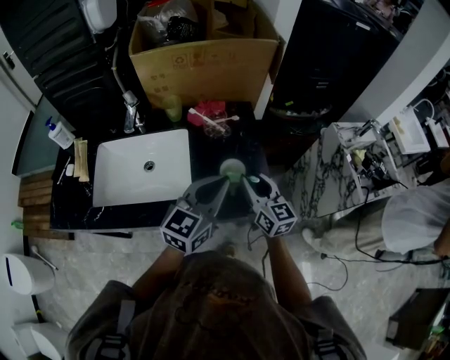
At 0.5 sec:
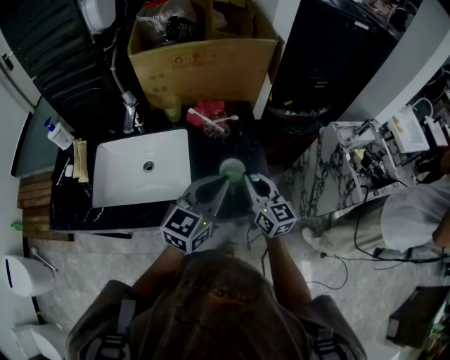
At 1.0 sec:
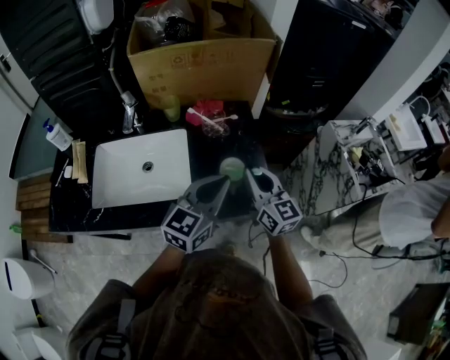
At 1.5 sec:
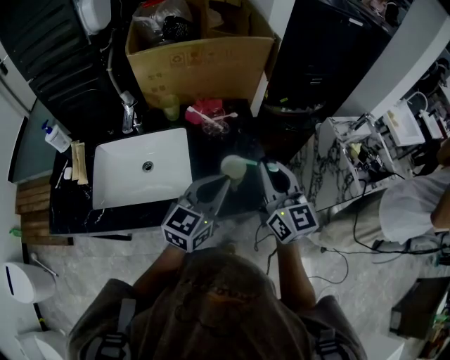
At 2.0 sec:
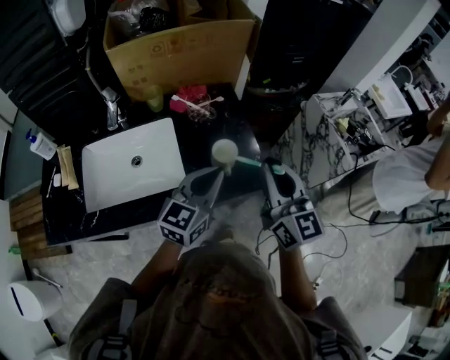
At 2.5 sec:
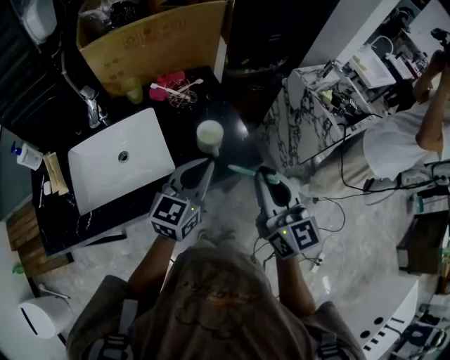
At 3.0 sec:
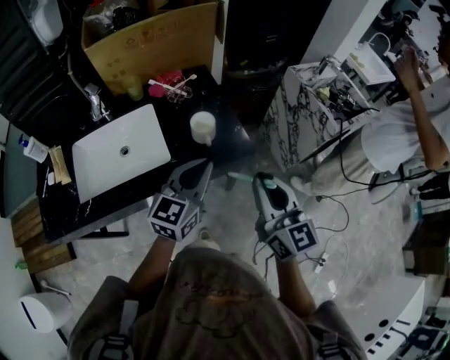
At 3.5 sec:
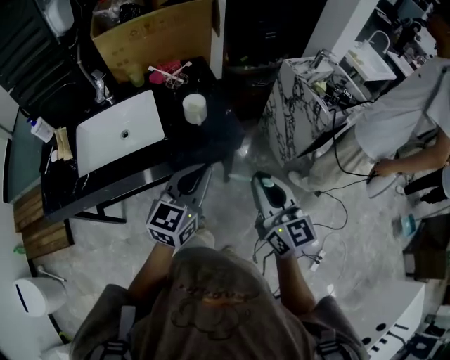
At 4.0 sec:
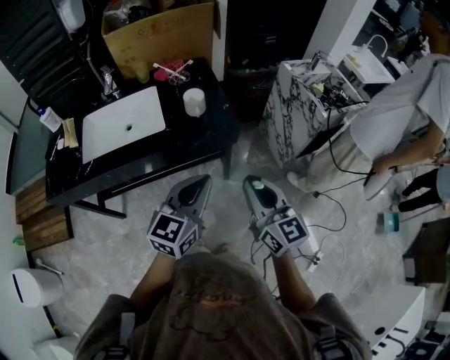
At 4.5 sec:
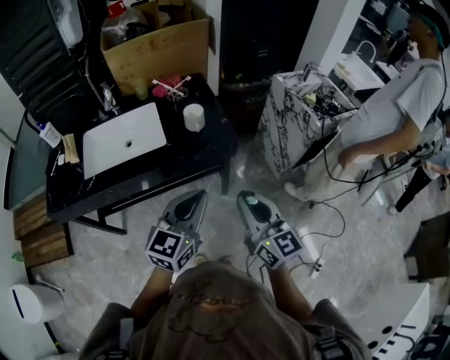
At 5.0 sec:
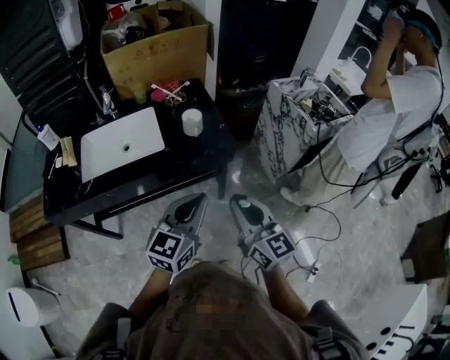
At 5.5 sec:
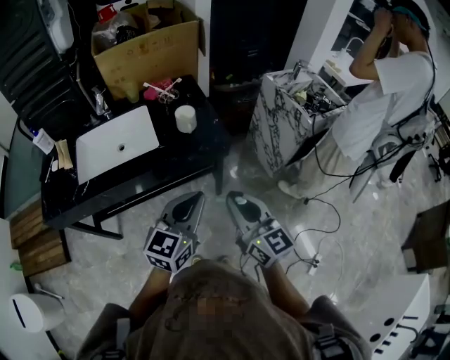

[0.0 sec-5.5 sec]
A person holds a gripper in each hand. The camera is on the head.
0.0 sec to 2.0 sec: The right gripper heads upward and backward, covering approximately 15 cm, and closes.
2.0 sec to 3.5 sec: The two grippers go some 20 cm backward and to the right.
3.5 sec to 5.5 sec: Both grippers travel together backward, approximately 10 cm.

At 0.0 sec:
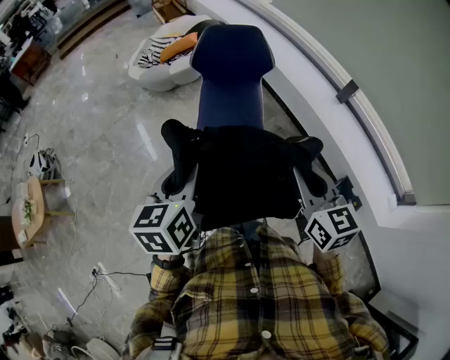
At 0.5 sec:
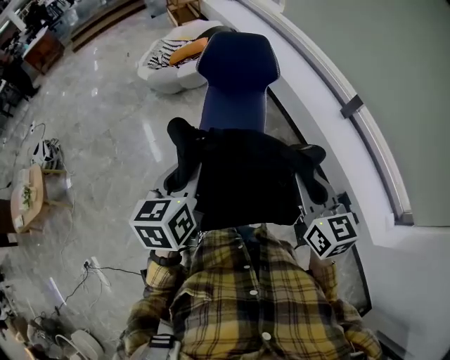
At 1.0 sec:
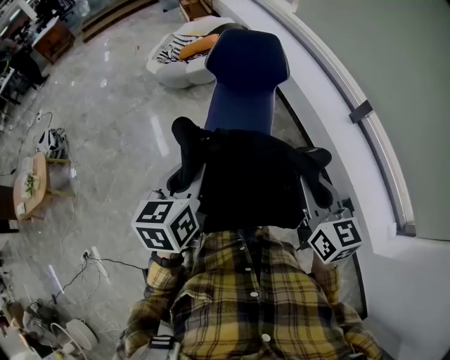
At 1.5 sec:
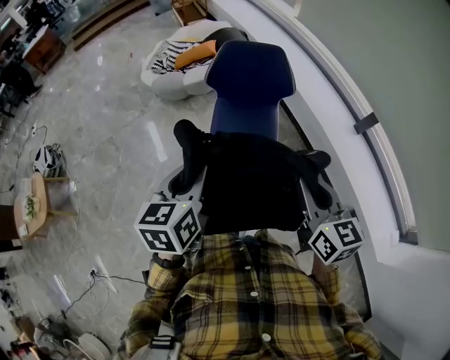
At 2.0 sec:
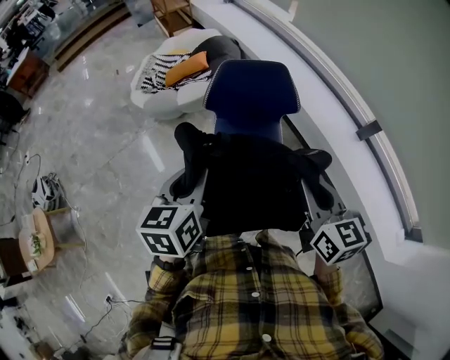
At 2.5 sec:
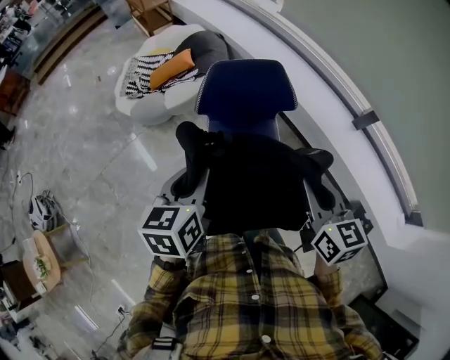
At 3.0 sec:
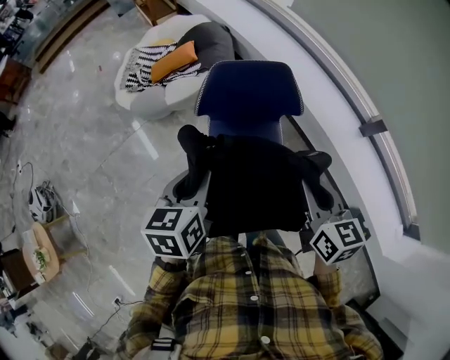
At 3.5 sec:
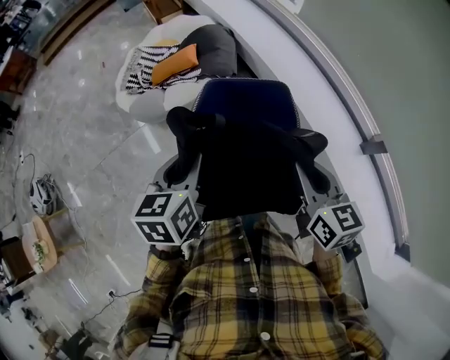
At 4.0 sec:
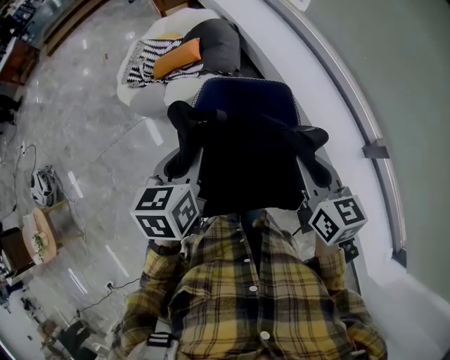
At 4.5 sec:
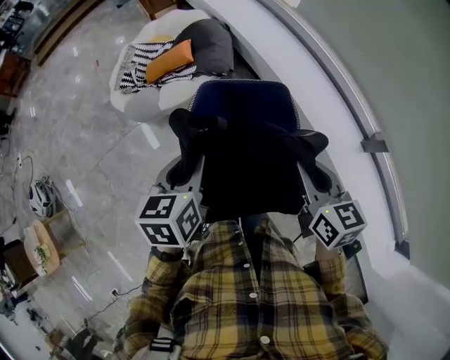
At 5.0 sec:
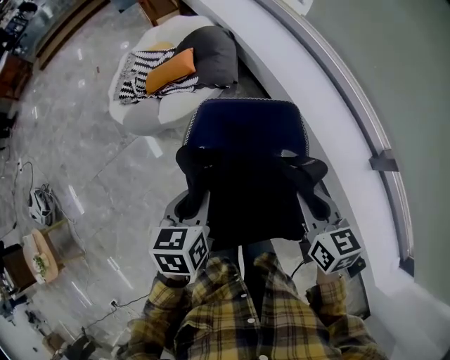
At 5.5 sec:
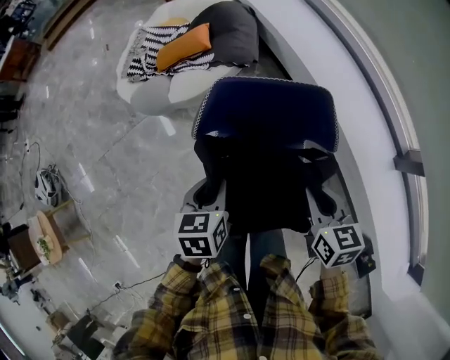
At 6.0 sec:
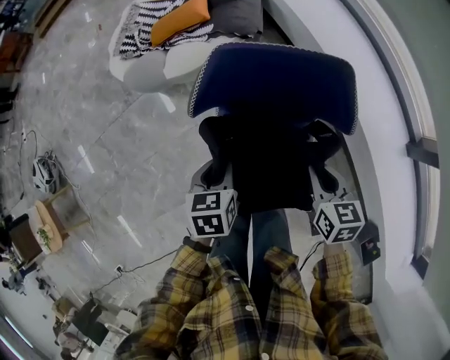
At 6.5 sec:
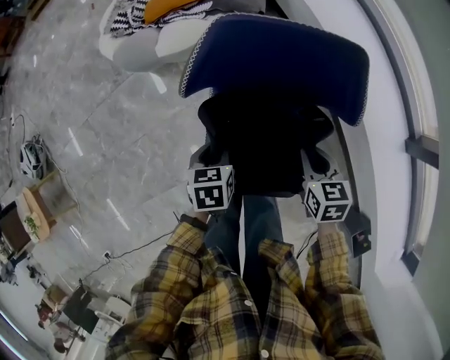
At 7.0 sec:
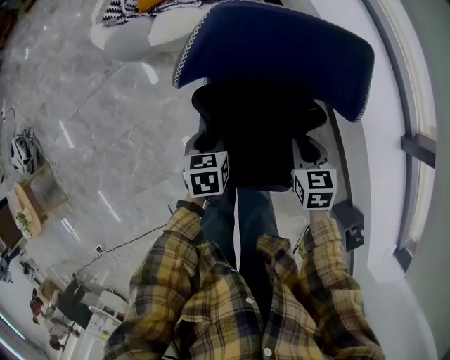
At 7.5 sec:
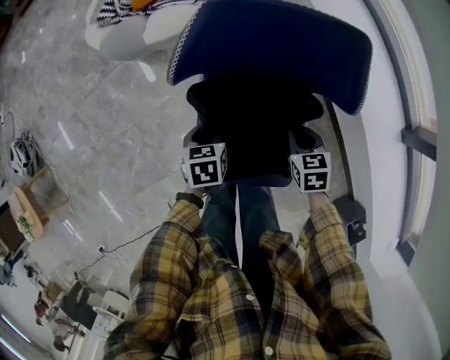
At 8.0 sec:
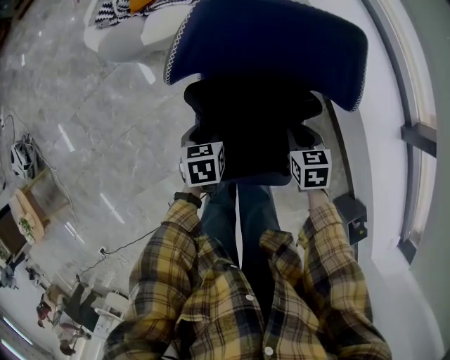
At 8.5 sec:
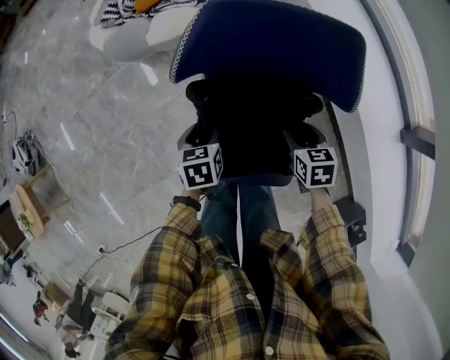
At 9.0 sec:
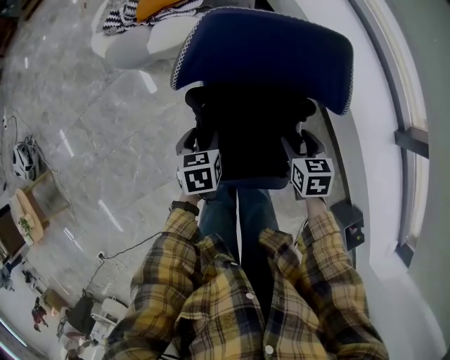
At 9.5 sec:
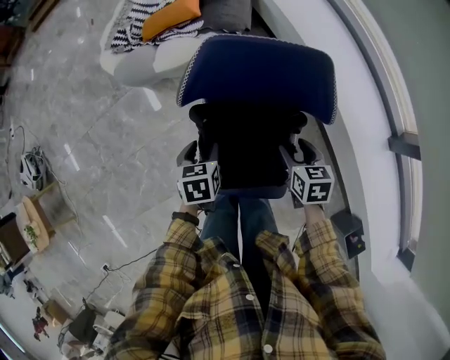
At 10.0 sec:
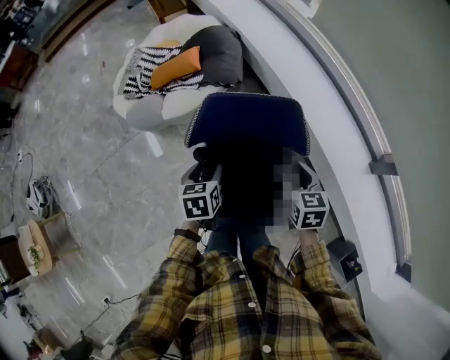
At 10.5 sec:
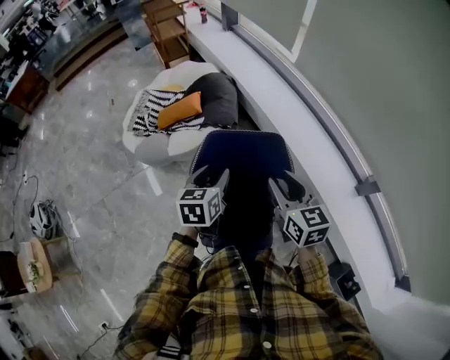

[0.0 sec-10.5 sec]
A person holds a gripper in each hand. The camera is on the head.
0.0 sec to 2.0 sec: The two grippers go approximately 25 cm forward.
2.0 sec to 4.0 sec: Both grippers move forward, about 25 cm.
4.0 sec to 6.5 sec: Both grippers move downward, some 35 cm. The left gripper turns by approximately 20 degrees, while the right gripper rotates about 30 degrees.
6.5 sec to 8.5 sec: The left gripper opens. The right gripper moves downward, some 5 cm, and opens.
8.5 sec to 10.5 sec: Both grippers move upward, roughly 35 cm. The right gripper tips its fingers upward by approximately 40 degrees, while the left gripper swivels about 30 degrees.

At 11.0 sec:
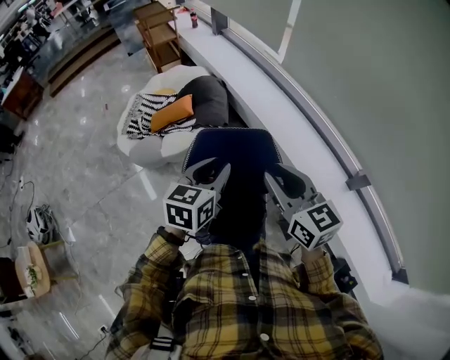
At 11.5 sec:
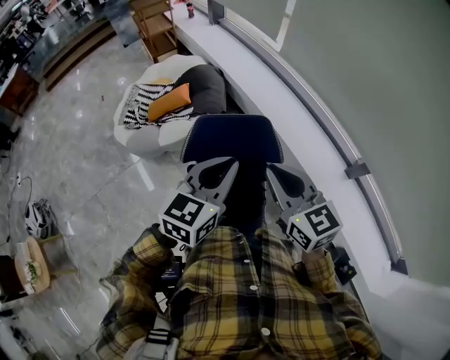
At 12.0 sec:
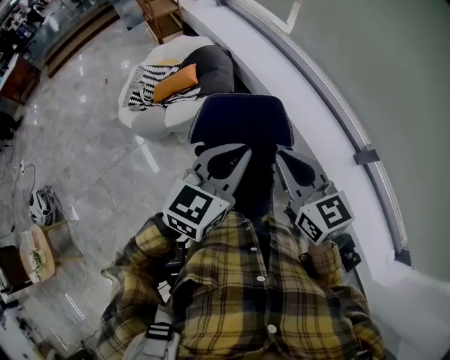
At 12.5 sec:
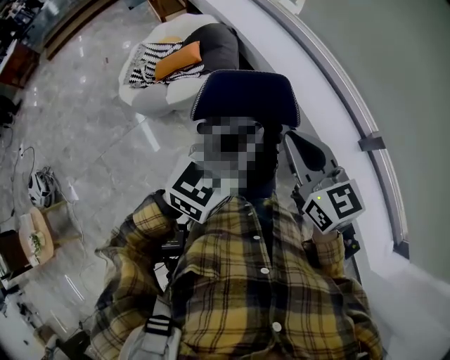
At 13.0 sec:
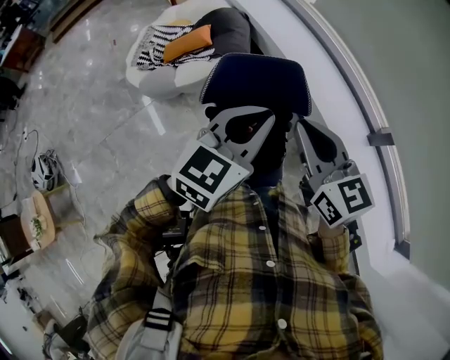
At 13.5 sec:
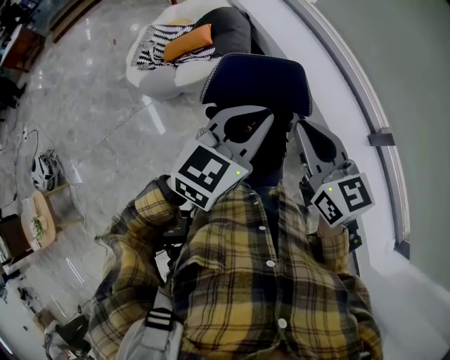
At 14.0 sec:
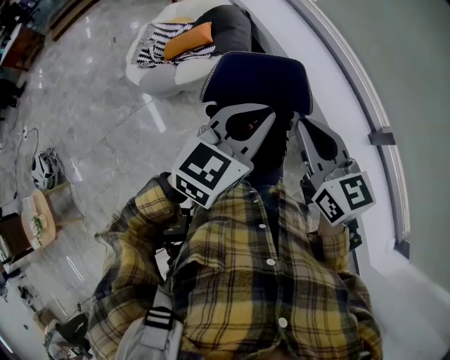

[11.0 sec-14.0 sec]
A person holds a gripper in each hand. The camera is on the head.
11.0 sec to 12.5 sec: The left gripper moves backward and upward, some 10 cm, and closes. The right gripper travels backward by some 5 cm, and closes its fingers.
12.5 sec to 14.0 sec: The grippers make only small movements.

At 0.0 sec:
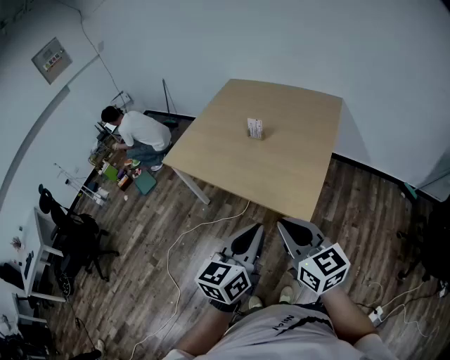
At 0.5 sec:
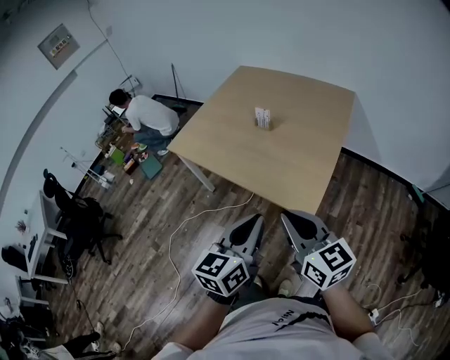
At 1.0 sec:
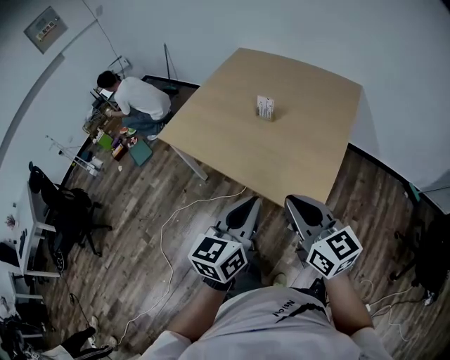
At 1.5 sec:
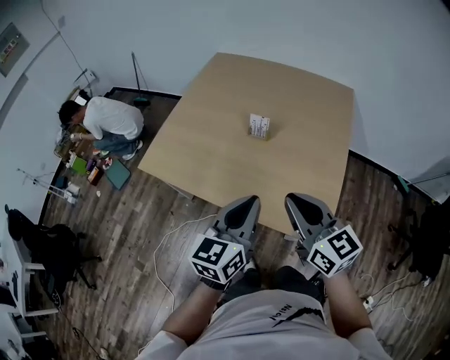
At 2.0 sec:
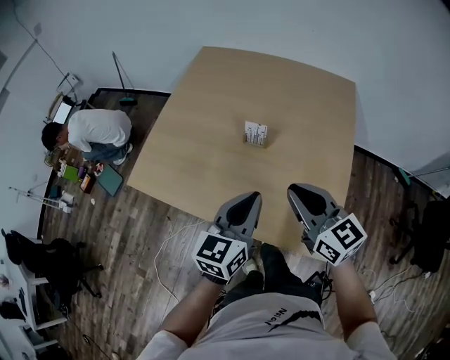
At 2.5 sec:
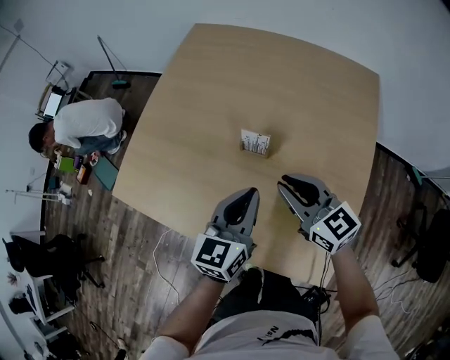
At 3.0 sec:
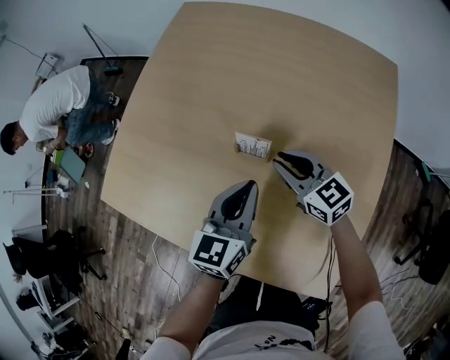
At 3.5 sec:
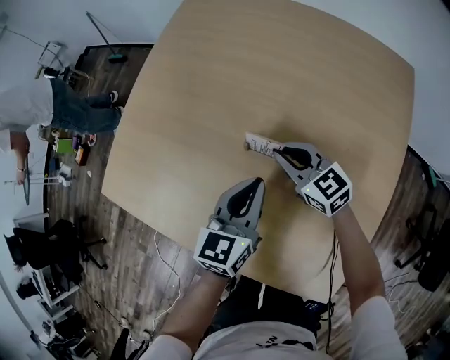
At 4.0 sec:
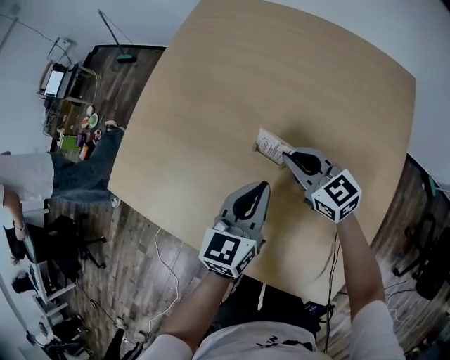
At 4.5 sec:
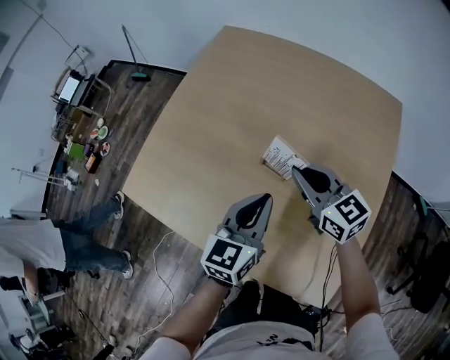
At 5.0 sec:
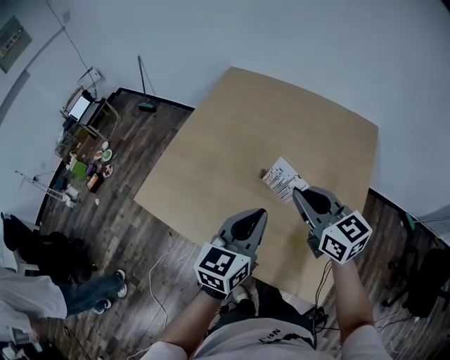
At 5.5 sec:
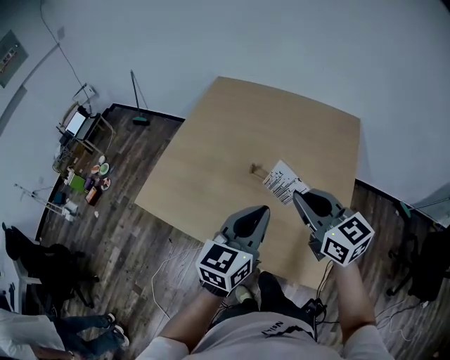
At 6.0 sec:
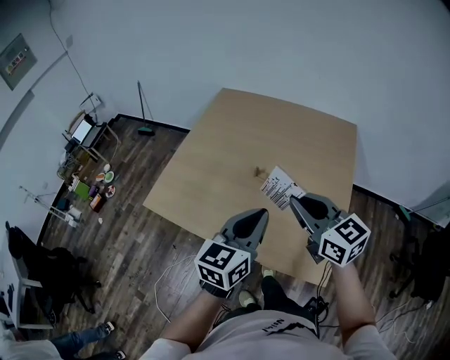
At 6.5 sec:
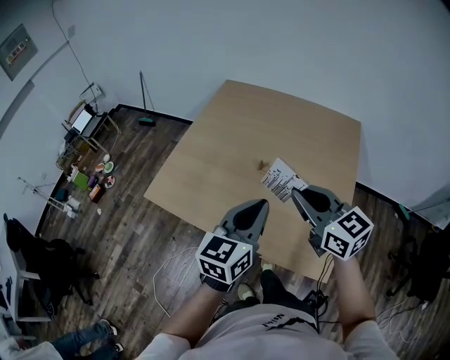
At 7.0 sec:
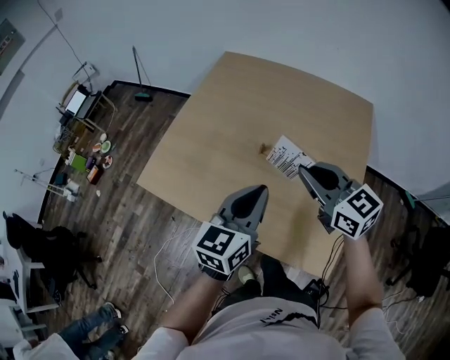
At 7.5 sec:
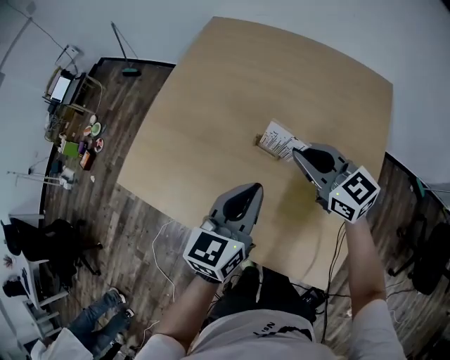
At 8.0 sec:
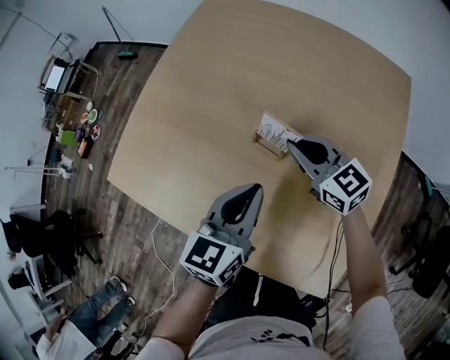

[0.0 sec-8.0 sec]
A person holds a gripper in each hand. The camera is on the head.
0.0 sec to 2.0 sec: Both grippers travel together forward, approximately 35 cm.
2.0 sec to 4.0 sec: The grippers both shift forward and downward by some 30 cm.
4.0 sec to 6.0 sec: The grippers both shift upward and backward by approximately 35 cm.
6.0 sec to 8.0 sec: Both grippers travel together downward and forward, roughly 30 cm.
